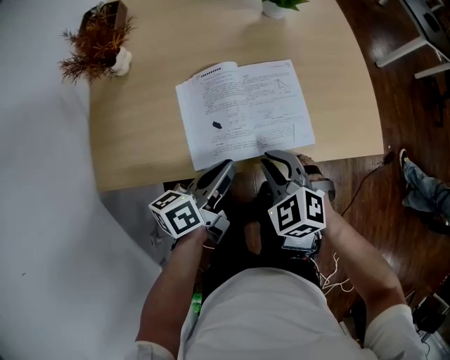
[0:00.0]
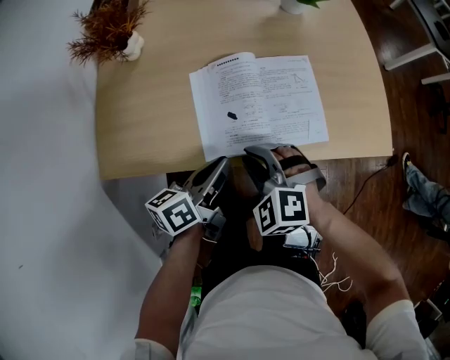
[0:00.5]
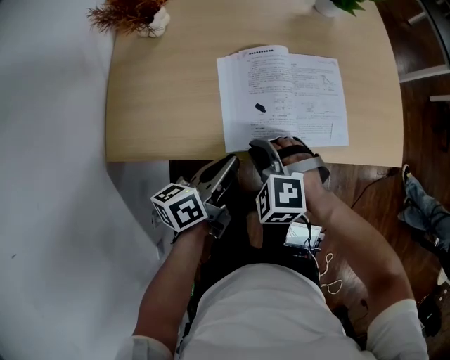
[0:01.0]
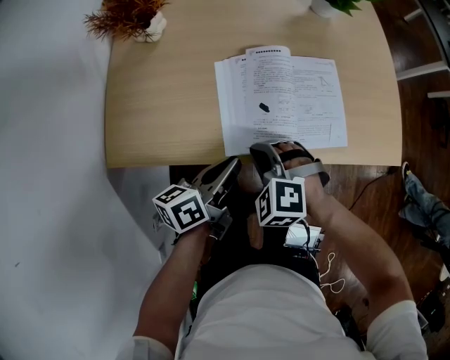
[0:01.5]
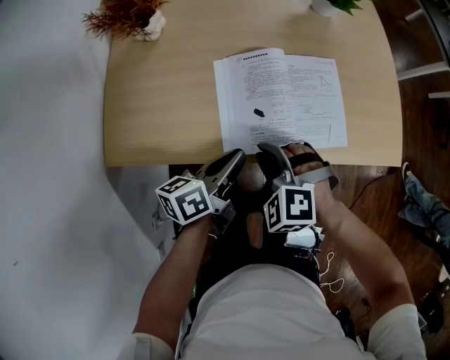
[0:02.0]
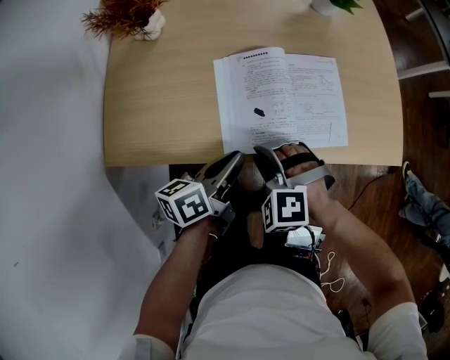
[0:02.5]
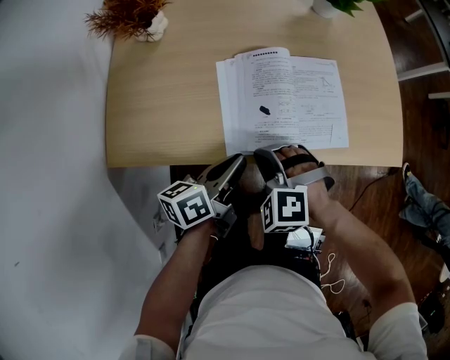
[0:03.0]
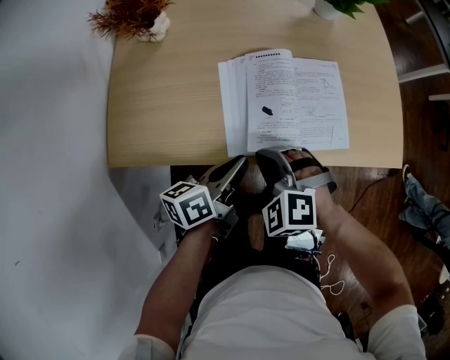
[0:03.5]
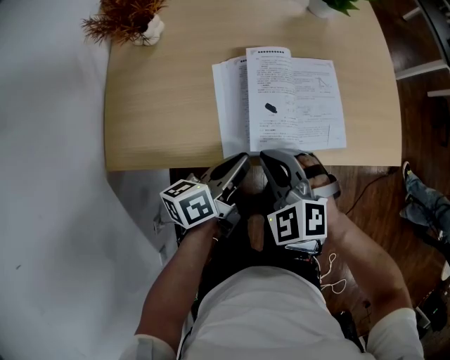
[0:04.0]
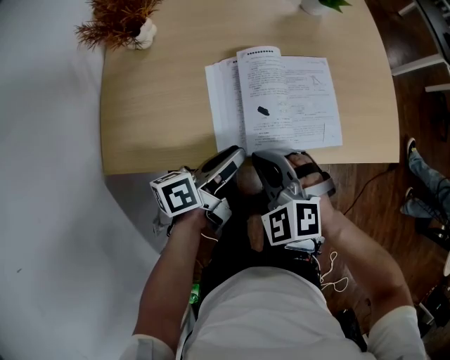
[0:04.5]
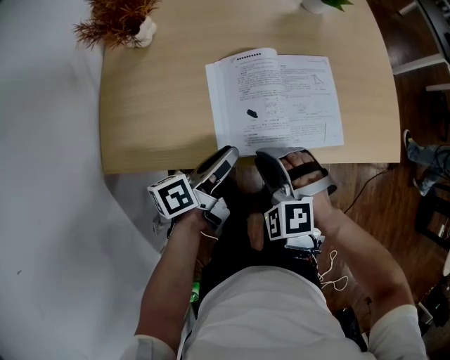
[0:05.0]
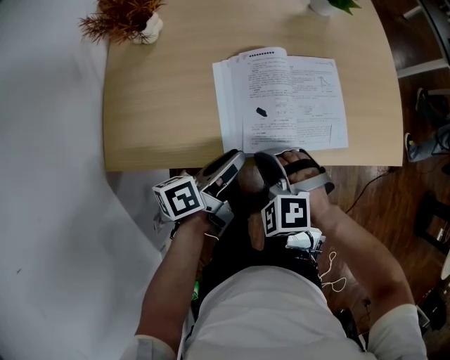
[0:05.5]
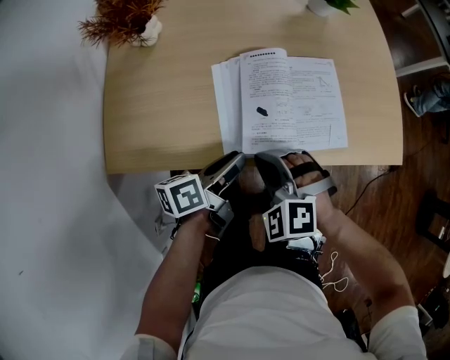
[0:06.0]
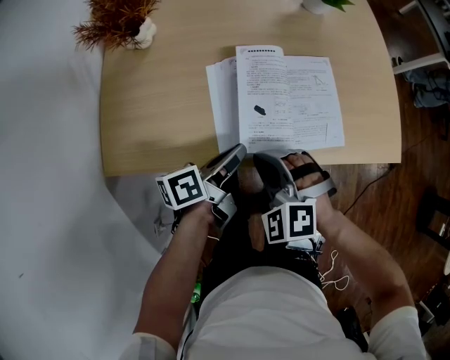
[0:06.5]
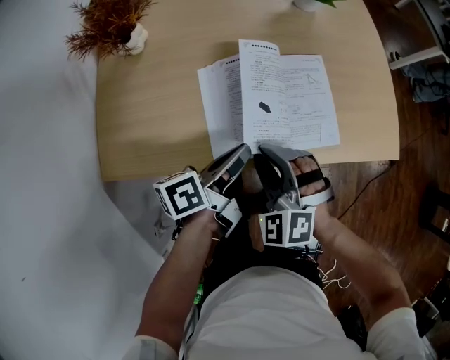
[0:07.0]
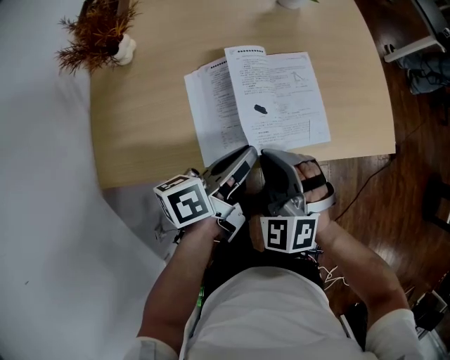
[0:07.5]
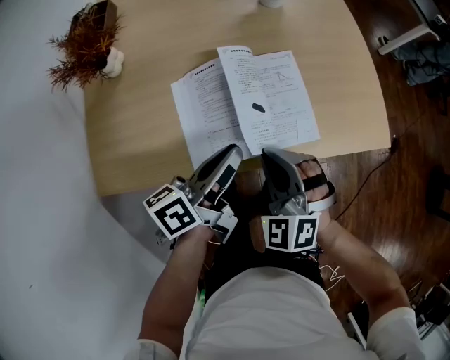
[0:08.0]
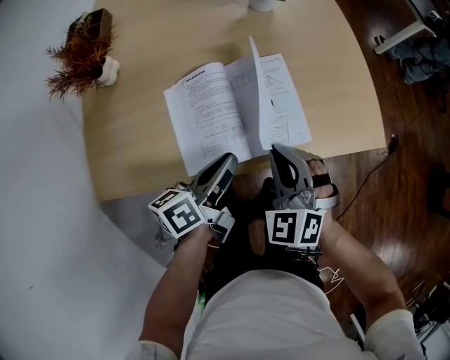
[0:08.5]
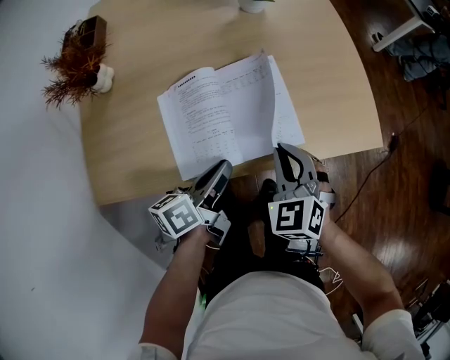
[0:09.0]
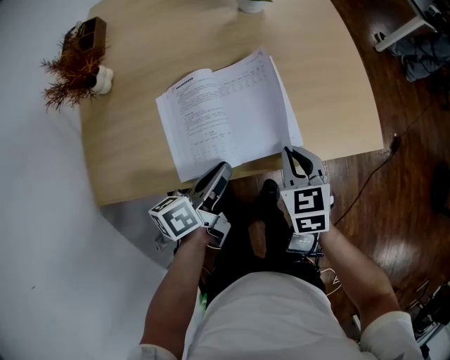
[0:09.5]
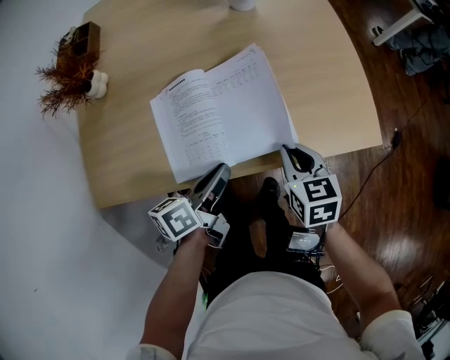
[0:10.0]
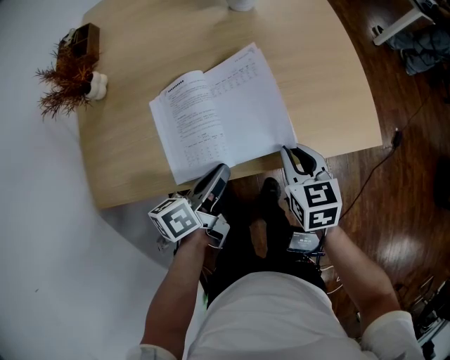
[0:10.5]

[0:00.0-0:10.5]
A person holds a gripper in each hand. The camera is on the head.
0:00.0 to 0:02.0: The left gripper shifts approximately 5 cm to the left, while the right gripper is displaced to the left by some 10 cm, and swivels some 30 degrees.
0:02.0 to 0:04.0: The grippers make only small movements.
0:04.0 to 0:06.5: The left gripper opens, then closes once more.
0:06.5 to 0:08.5: The right gripper is displaced to the right and forward by roughly 15 cm, changes its angle by about 30 degrees, and opens and closes again; the left gripper travels to the right by approximately 10 cm.
0:08.5 to 0:10.5: The right gripper shifts about 10 cm to the right and downward, and twists roughly 50 degrees clockwise, seen from behind. Meanwhile the left gripper ends up roughly 5 cm from where it was.

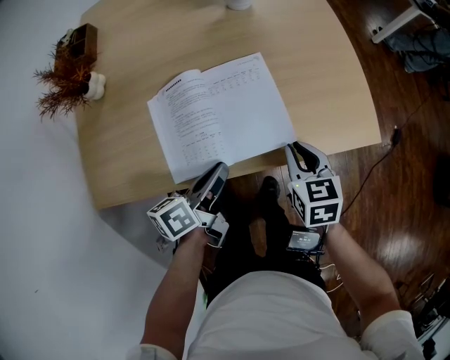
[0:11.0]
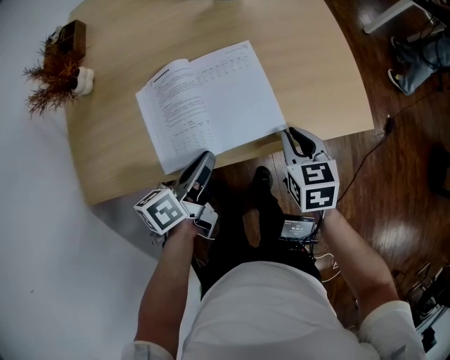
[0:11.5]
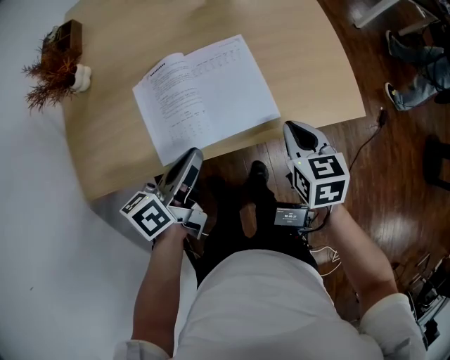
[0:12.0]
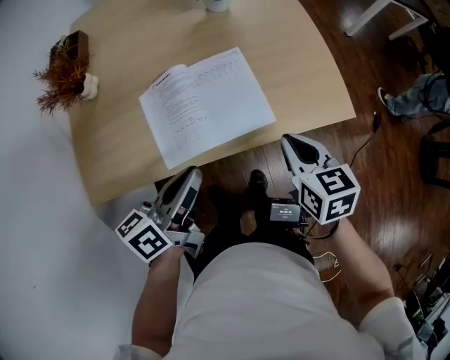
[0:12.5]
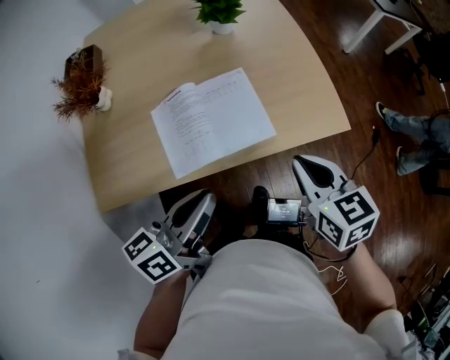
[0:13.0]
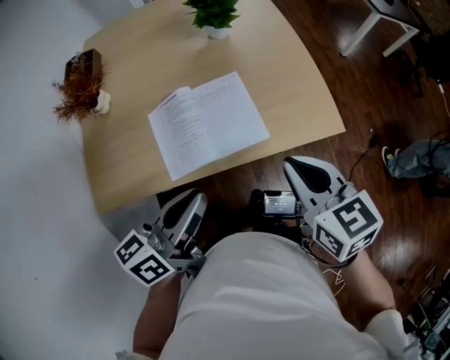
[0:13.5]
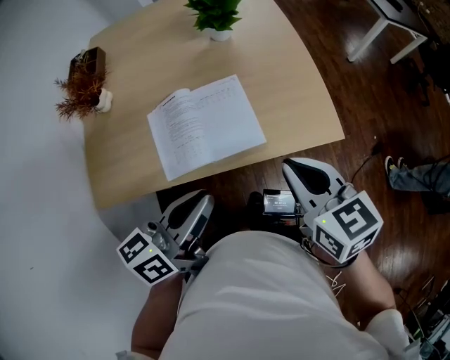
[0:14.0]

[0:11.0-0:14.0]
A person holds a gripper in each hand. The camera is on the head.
0:11.0 to 0:12.5: The left gripper travels upward and backward by about 15 cm. The right gripper shifts approximately 10 cm upward.
0:12.5 to 0:14.0: The right gripper moves upward, some 10 cm. Meanwhile the left gripper heads upward and to the right, covering approximately 10 cm.

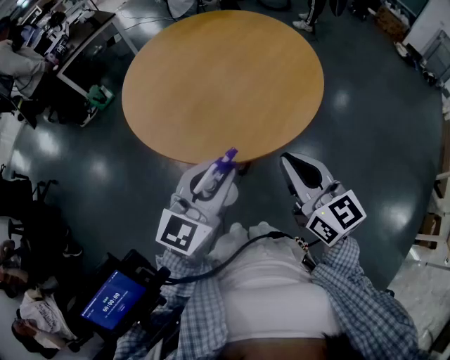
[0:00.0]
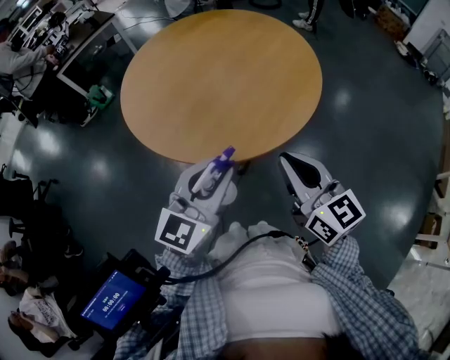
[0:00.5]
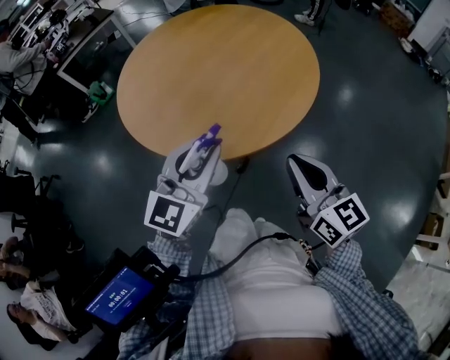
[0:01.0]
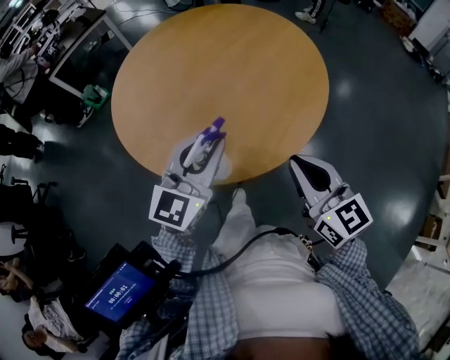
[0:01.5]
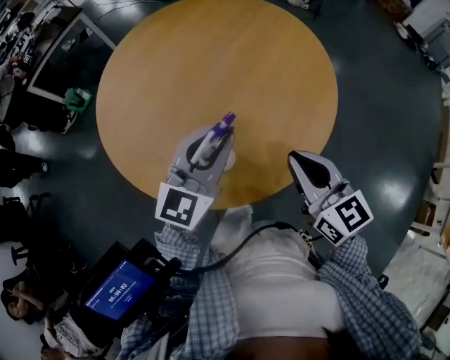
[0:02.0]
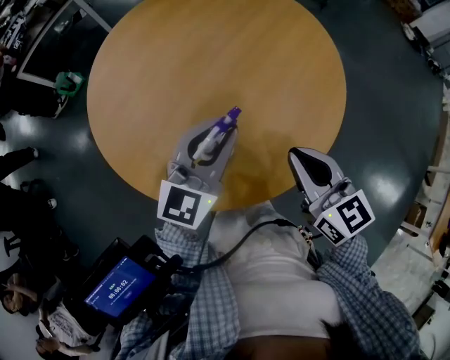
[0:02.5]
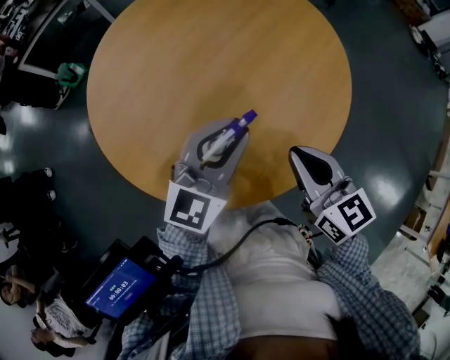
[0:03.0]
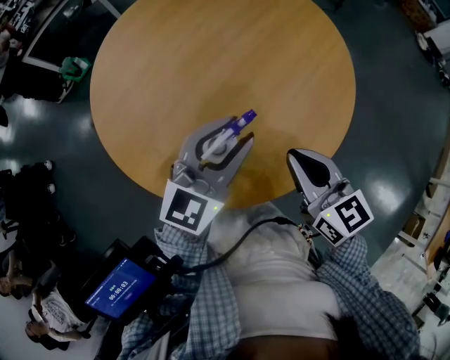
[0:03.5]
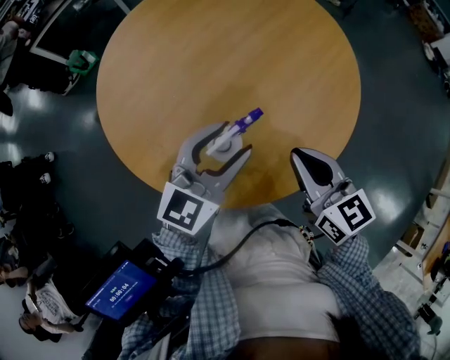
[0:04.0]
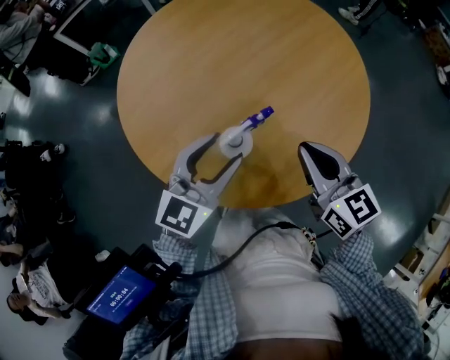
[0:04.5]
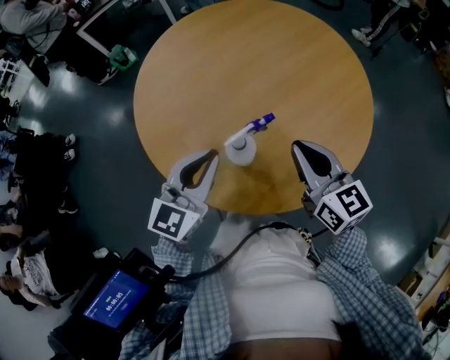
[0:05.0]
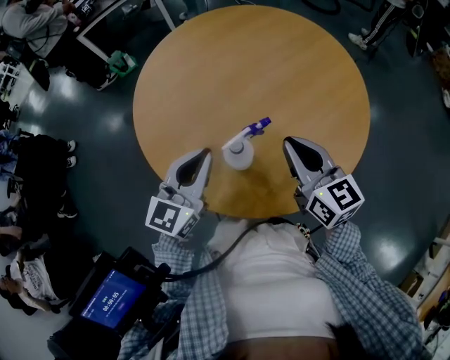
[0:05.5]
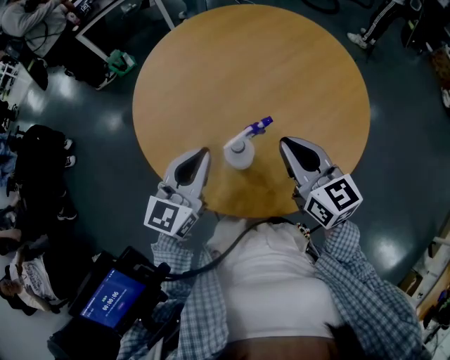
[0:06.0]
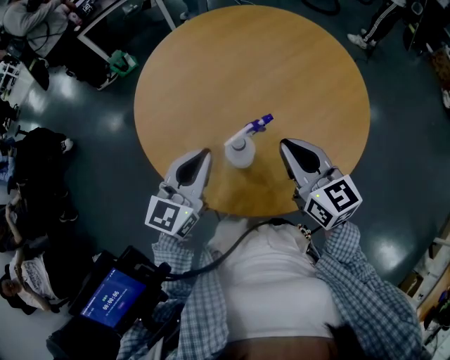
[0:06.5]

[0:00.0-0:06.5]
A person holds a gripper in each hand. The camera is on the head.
0:00.0 to 0:02.0: Both grippers travel together forward, approximately 20 cm.
0:02.0 to 0:04.5: The left gripper goes some 5 cm downward, and opens; the right gripper is displaced forward by some 10 cm.
0:04.5 to 0:06.5: The left gripper shifts about 5 cm to the left, and closes up.

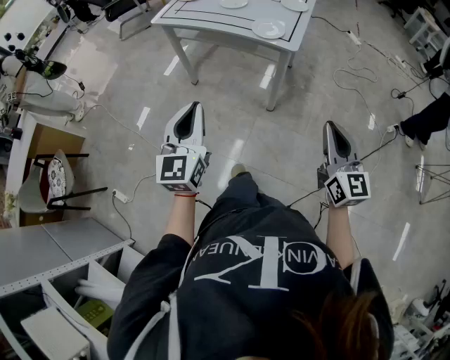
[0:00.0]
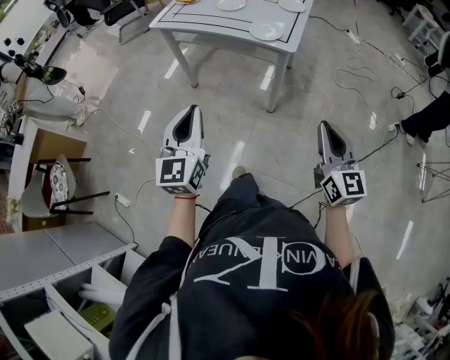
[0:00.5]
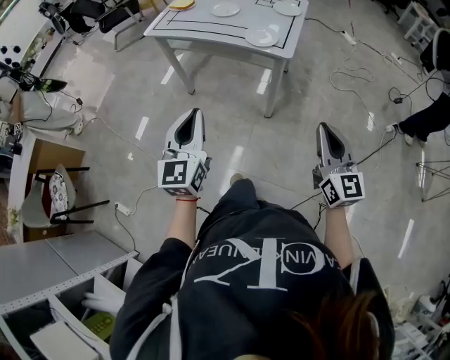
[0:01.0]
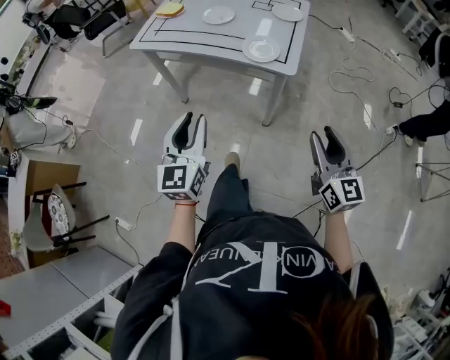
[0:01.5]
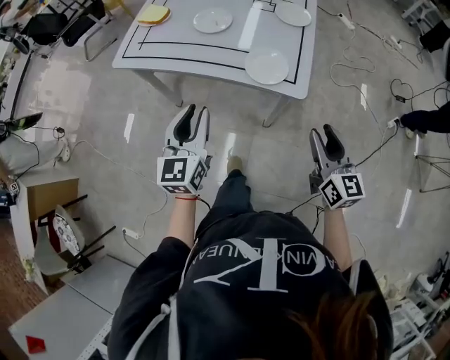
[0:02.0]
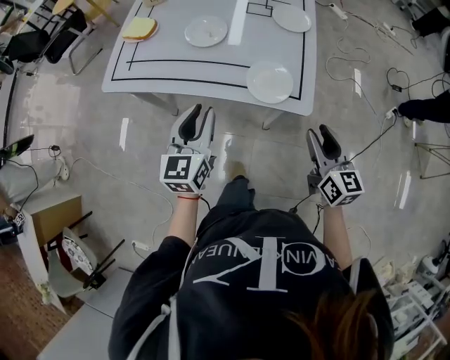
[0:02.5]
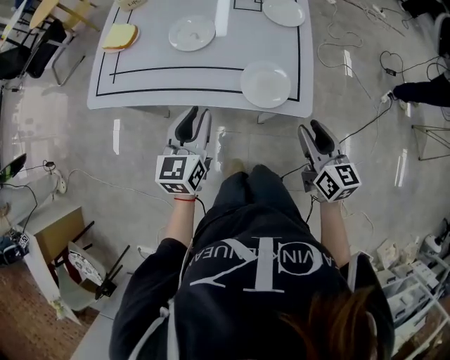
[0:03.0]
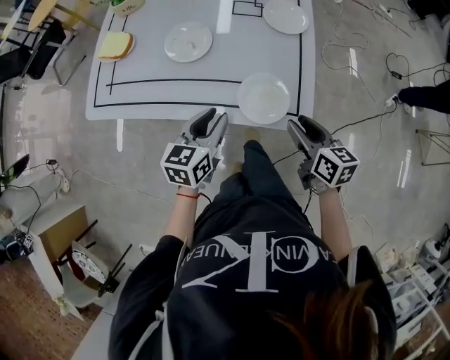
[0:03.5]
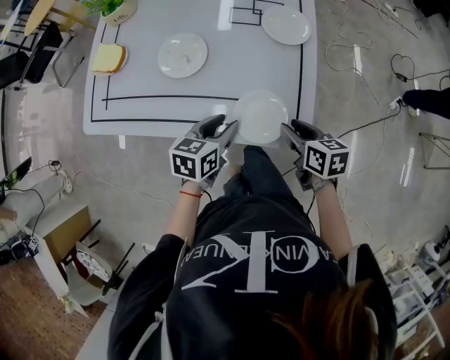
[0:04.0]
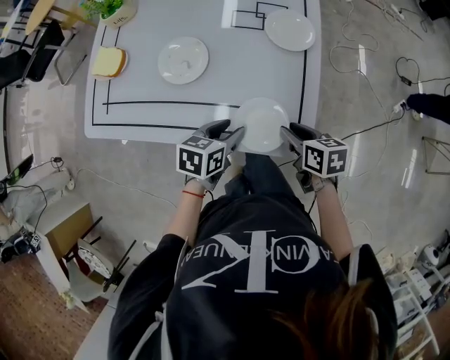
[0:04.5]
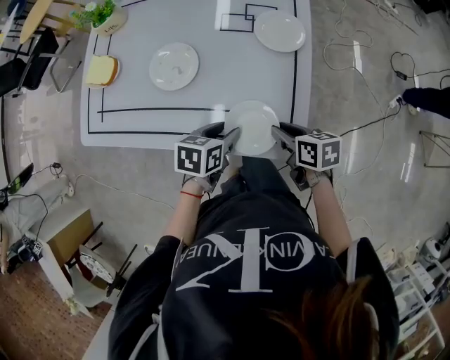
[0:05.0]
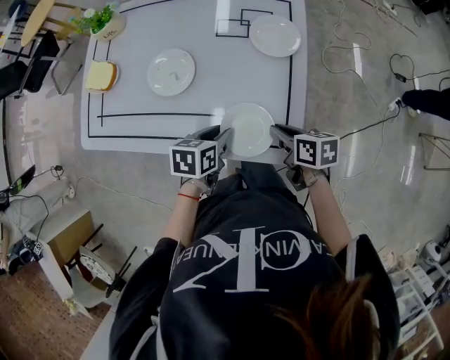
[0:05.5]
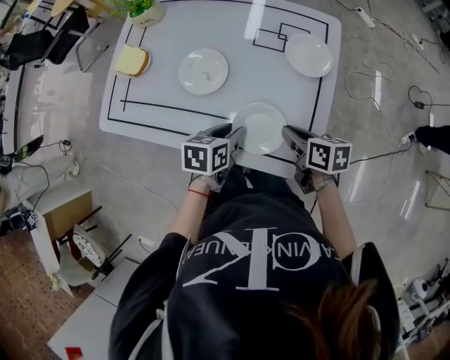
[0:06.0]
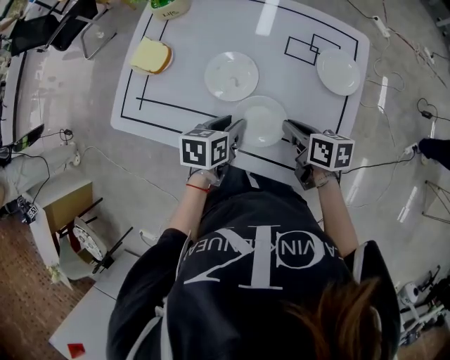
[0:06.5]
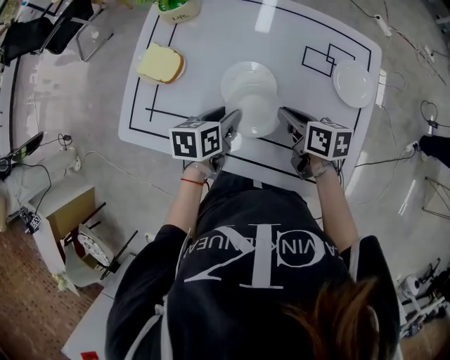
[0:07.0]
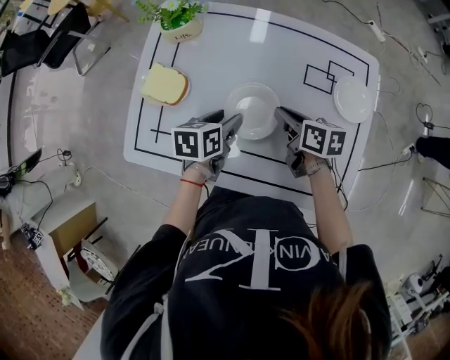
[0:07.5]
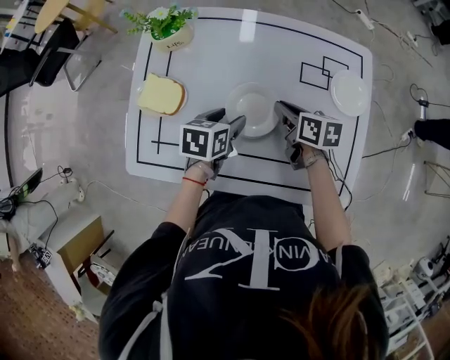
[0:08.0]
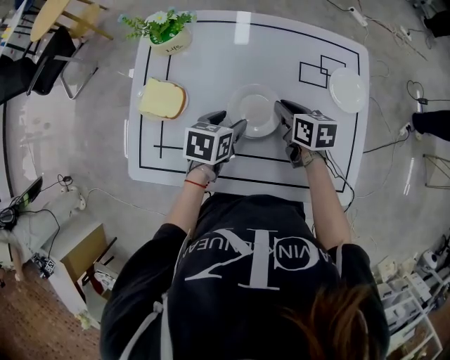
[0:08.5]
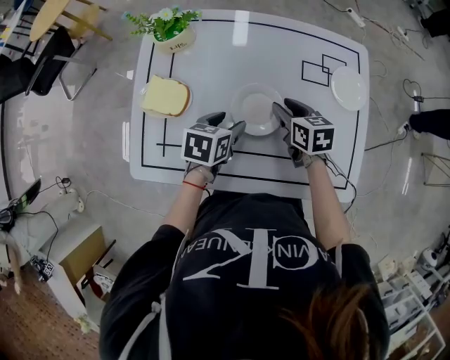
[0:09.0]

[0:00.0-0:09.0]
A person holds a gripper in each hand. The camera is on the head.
0:00.0 to 0:02.0: The grippers both shift forward by roughly 35 cm. The right gripper opens, while the left gripper opens.
0:02.0 to 0:04.5: The left gripper shifts some 30 cm forward, downward and to the right, and tips its fingers downward by roughly 30 degrees, while the right gripper moves forward and downward, about 30 cm, and tips its fingers downward by approximately 40 degrees.
0:04.5 to 0:07.0: The grippers both shift to the left and forward by about 25 cm. The right gripper closes its fingers.
0:07.0 to 0:09.0: The right gripper heads forward, covering roughly 5 cm, rotates some 20 degrees, and opens its fingers. The left gripper changes place by roughly 5 cm, and changes its angle by some 20 degrees.
